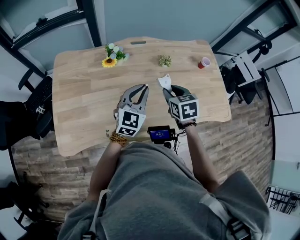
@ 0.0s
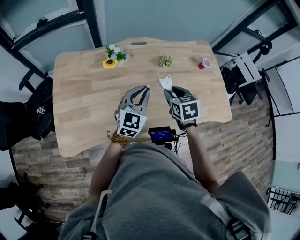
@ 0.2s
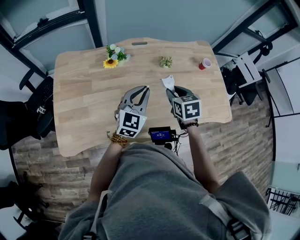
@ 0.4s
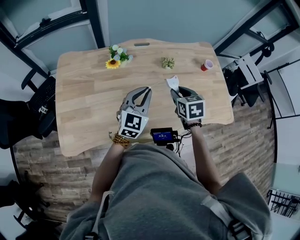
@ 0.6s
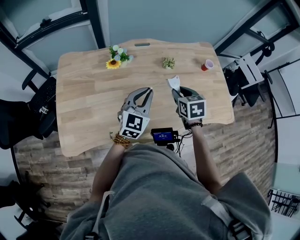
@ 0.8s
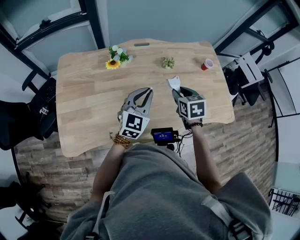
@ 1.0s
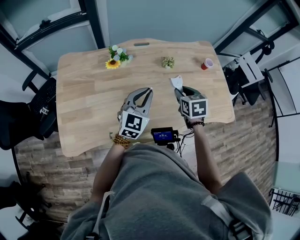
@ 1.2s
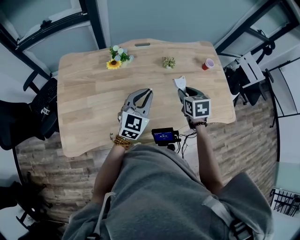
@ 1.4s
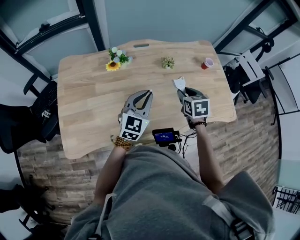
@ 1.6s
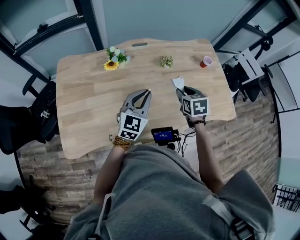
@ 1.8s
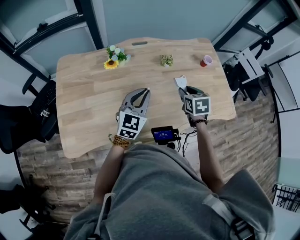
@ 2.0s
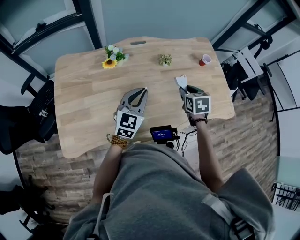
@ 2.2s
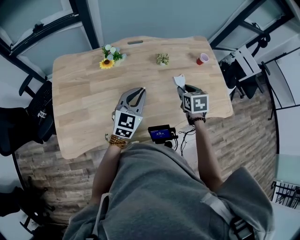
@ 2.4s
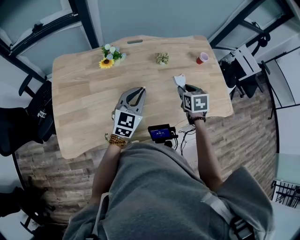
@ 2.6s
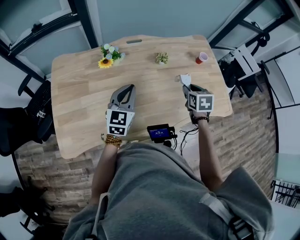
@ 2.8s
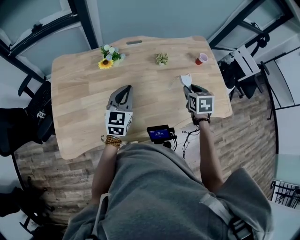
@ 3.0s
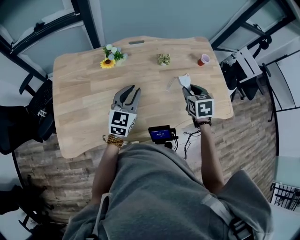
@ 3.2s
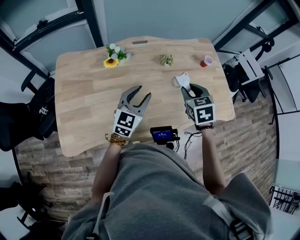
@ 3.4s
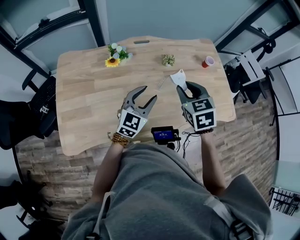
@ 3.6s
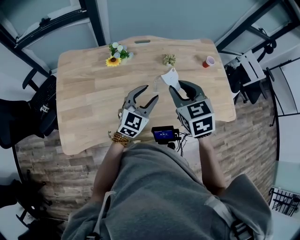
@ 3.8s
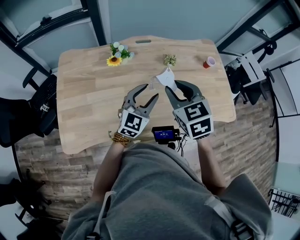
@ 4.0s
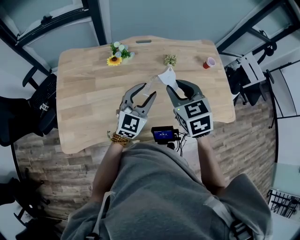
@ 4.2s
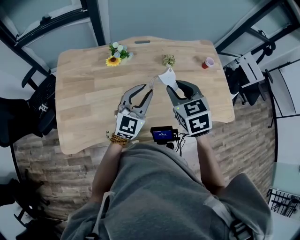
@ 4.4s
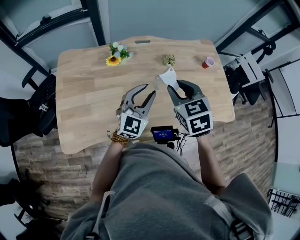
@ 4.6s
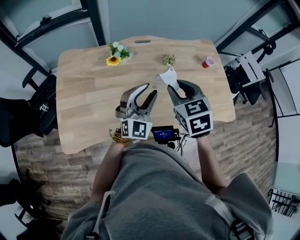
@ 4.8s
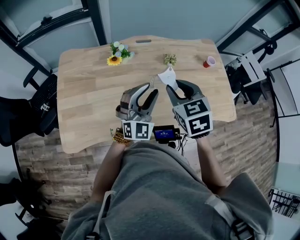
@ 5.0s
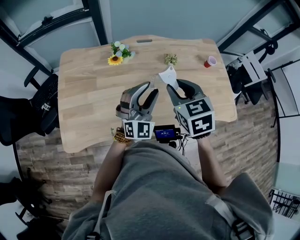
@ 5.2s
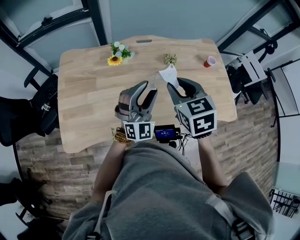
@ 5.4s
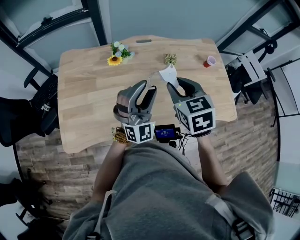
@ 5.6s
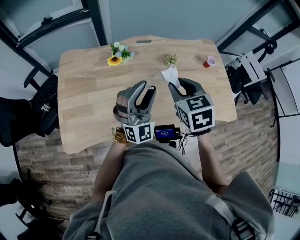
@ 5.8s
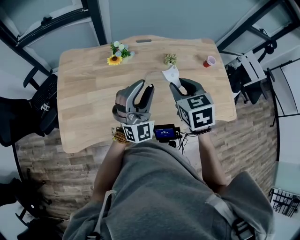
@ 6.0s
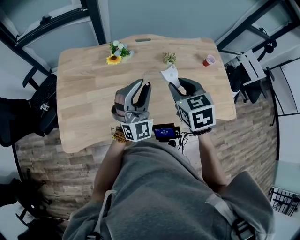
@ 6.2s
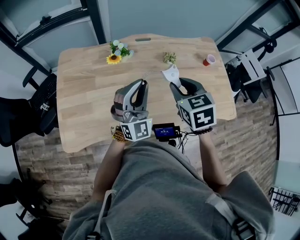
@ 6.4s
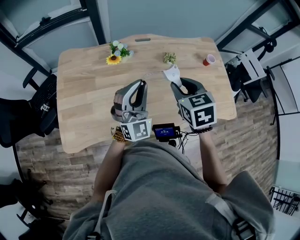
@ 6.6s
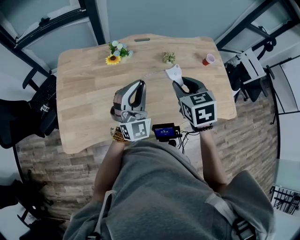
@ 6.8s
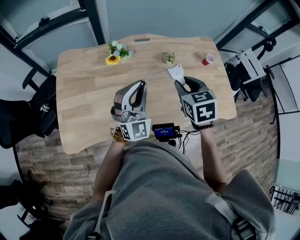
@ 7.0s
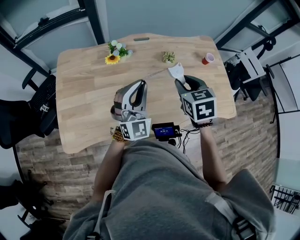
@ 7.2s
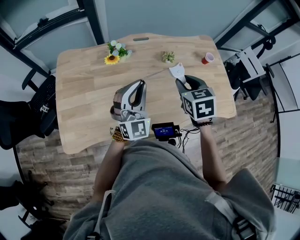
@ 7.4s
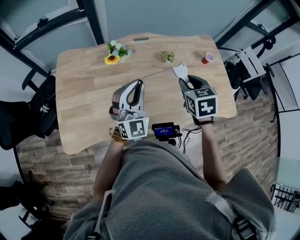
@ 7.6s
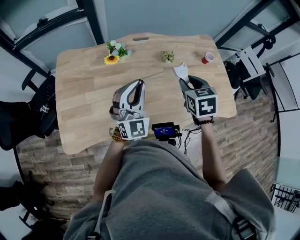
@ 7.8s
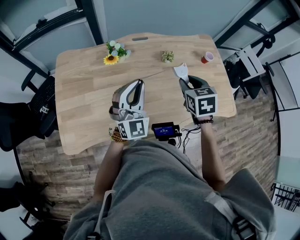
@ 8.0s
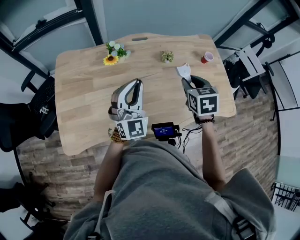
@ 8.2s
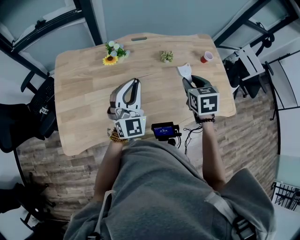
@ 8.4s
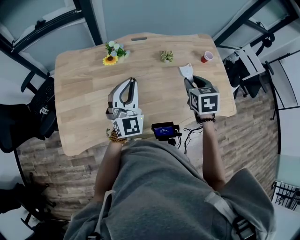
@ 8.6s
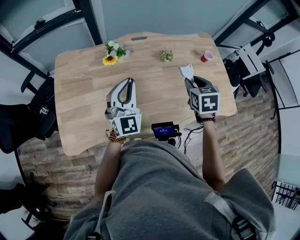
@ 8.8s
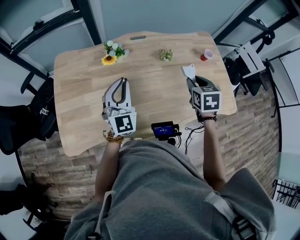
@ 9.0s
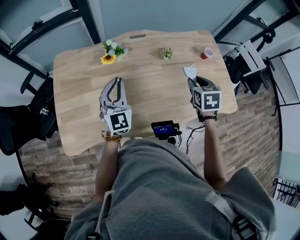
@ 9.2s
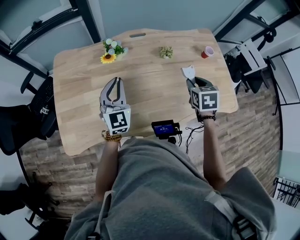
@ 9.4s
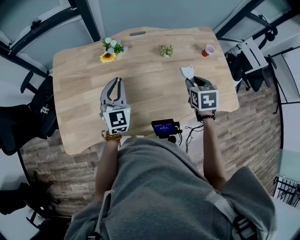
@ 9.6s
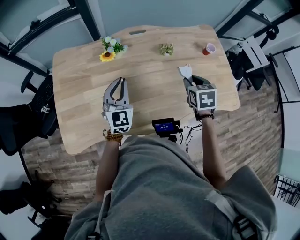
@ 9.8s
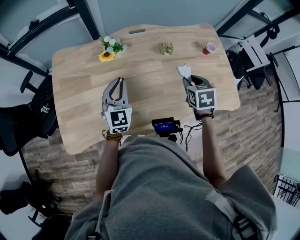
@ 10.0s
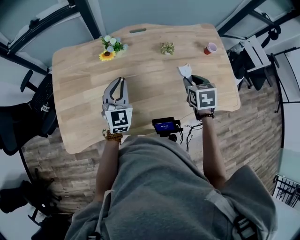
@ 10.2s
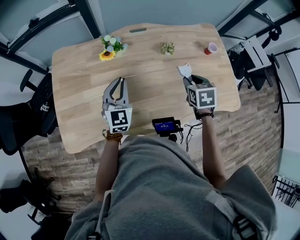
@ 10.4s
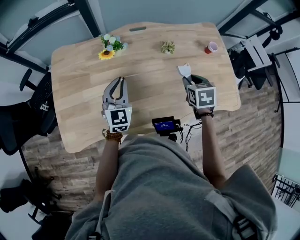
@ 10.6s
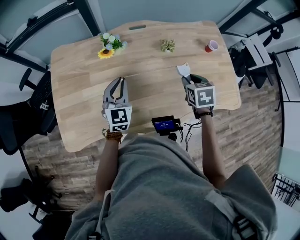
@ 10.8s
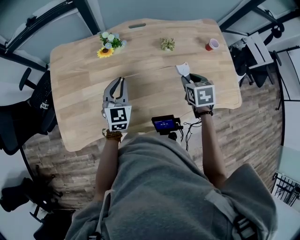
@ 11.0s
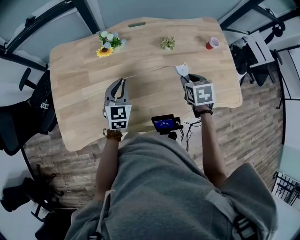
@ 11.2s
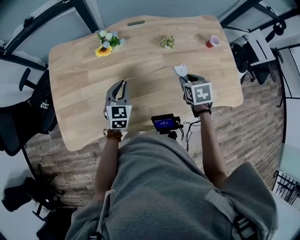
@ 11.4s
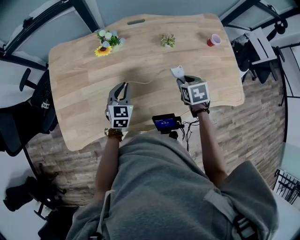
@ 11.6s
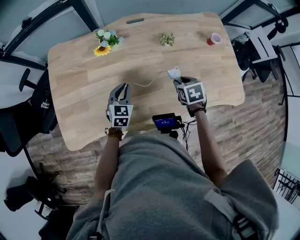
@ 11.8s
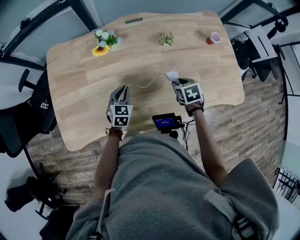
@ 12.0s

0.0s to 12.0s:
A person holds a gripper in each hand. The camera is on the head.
0.0s to 1.6s: The right gripper heads to the right, covering about 5 cm.
1.6s to 3.0s: The left gripper travels to the left by approximately 5 cm, while the right gripper shifts some 5 cm to the right.
3.0s to 4.4s: The right gripper shifts some 20 cm to the left and upward, and swivels approximately 30 degrees, while the left gripper moves some 5 cm, and opens up.
4.4s to 6.0s: The left gripper turns by roughly 40 degrees.
6.0s to 7.6s: The left gripper closes up. Meanwhile the right gripper is displaced to the right by some 5 cm.
7.6s to 9.0s: The right gripper goes some 5 cm to the right. The left gripper shifts approximately 5 cm to the left.
9.0s to 10.4s: Both grippers move downward, about 5 cm.
10.4s to 12.0s: The grippers both shift downward by some 15 cm. The left gripper changes its angle by approximately 30 degrees.

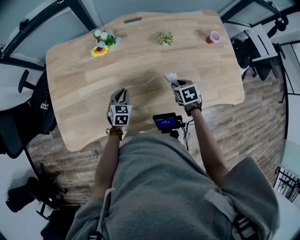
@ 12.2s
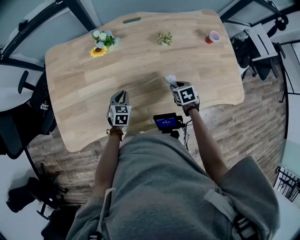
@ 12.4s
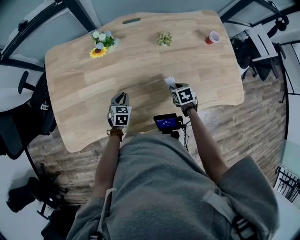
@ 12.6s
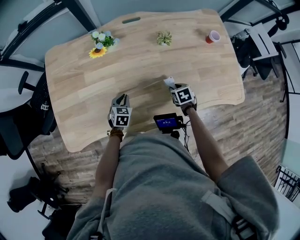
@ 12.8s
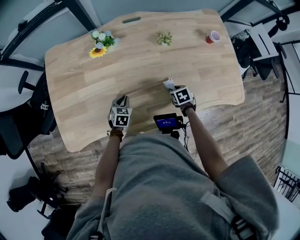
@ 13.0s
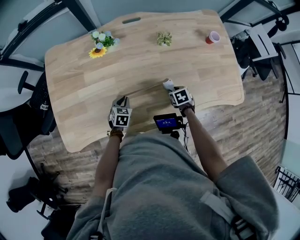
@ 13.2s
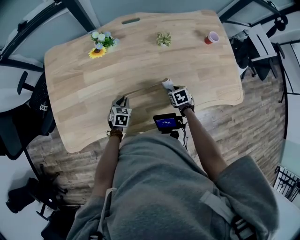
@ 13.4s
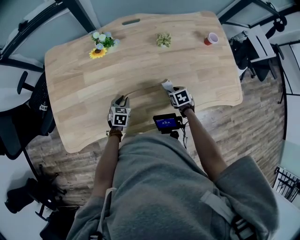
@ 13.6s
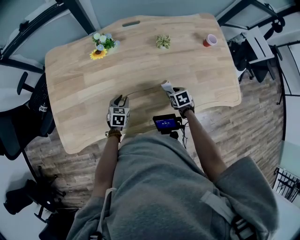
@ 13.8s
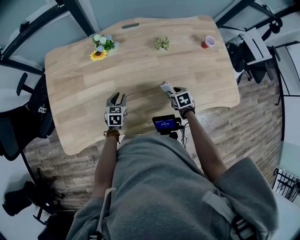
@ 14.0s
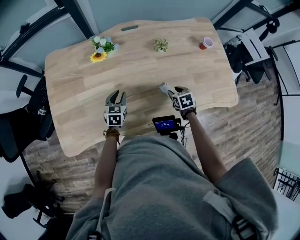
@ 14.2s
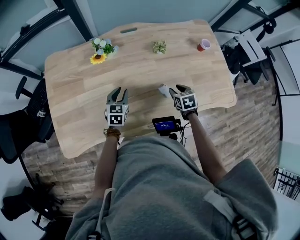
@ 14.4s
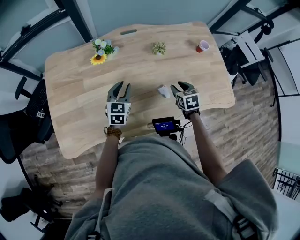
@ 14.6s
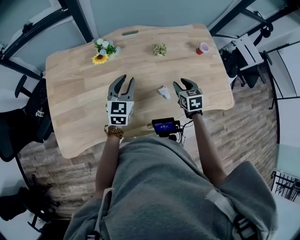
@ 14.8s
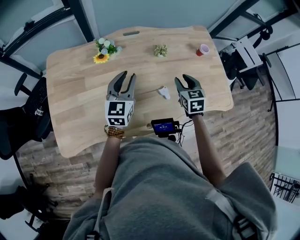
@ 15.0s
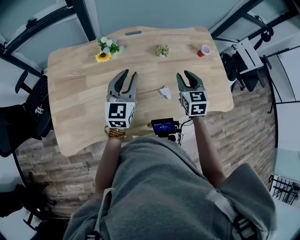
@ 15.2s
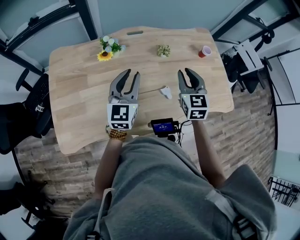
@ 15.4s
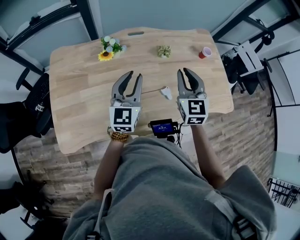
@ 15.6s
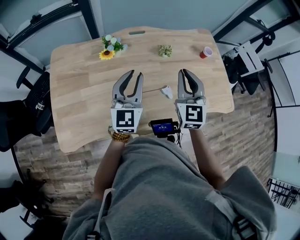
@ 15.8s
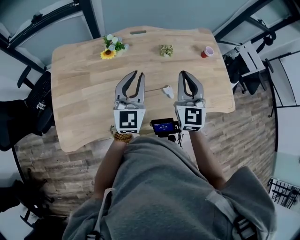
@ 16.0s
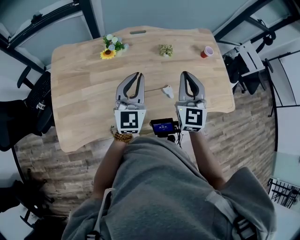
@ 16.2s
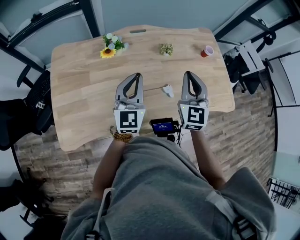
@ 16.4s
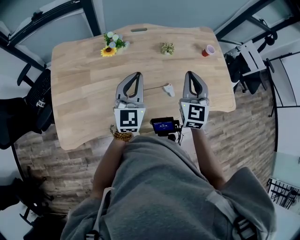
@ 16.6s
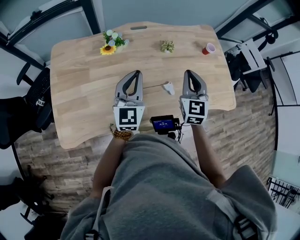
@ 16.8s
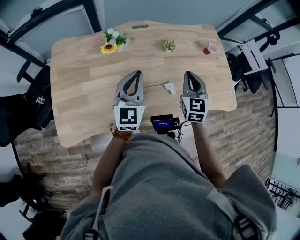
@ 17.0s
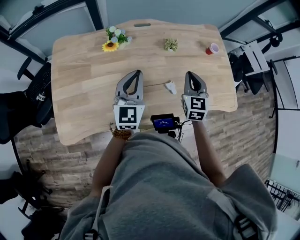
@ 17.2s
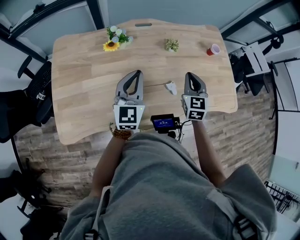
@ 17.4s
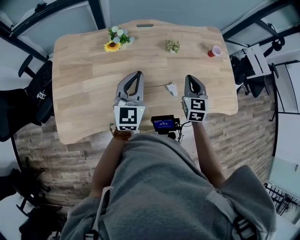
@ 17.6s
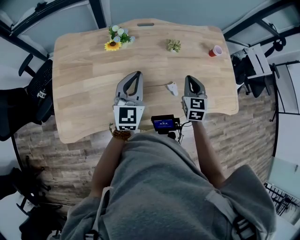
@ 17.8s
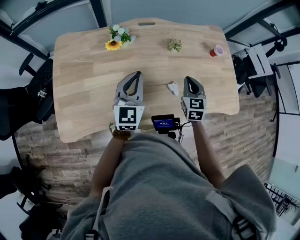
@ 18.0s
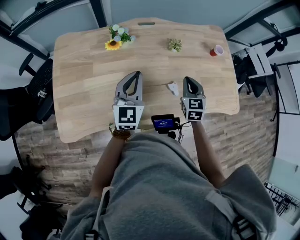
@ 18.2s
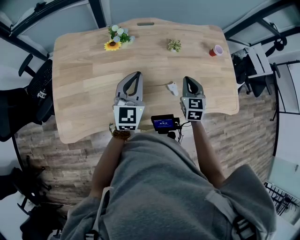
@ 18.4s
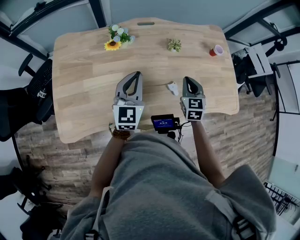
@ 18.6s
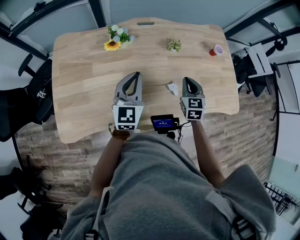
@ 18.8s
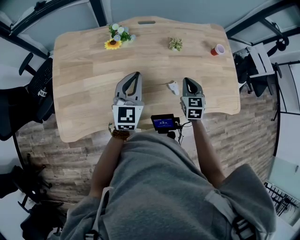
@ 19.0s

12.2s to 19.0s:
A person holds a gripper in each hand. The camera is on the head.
12.2s to 13.6s: The right gripper heads downward, covering roughly 10 cm, while the left gripper moves downward, roughly 5 cm.
13.6s to 15.0s: Both grippers move upward, approximately 25 cm. The left gripper angles its fingers upward, by approximately 40 degrees; the right gripper angles its fingers upward, by approximately 30 degrees.
15.0s to 16.2s: The right gripper goes some 15 cm upward and to the left, tips its fingers upward by some 30 degrees, and closes its fingers; the left gripper goes about 5 cm upward.
16.2s to 17.6s: The right gripper travels downward by some 15 cm.
17.6s to 19.0s: The right gripper is displaced downward by some 5 cm.

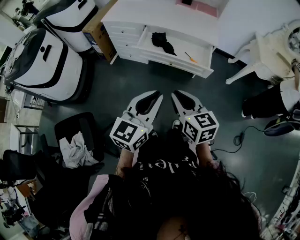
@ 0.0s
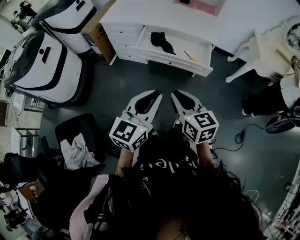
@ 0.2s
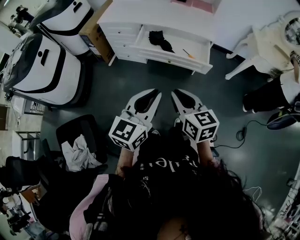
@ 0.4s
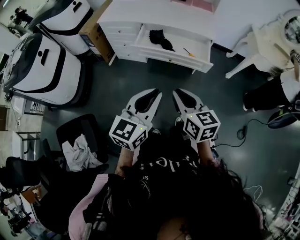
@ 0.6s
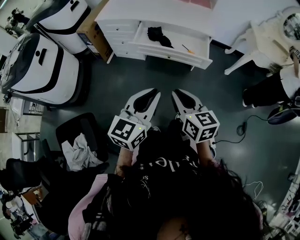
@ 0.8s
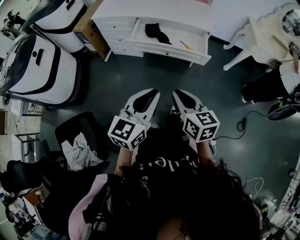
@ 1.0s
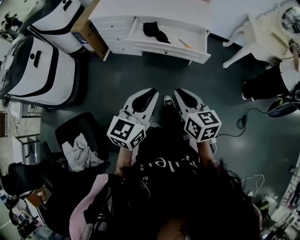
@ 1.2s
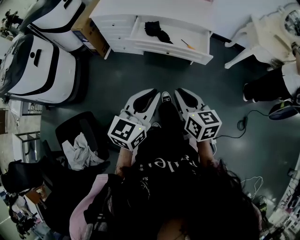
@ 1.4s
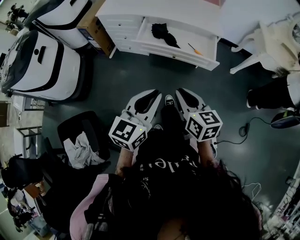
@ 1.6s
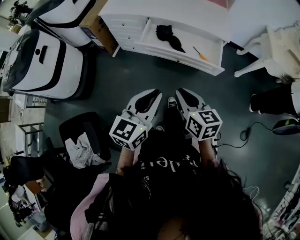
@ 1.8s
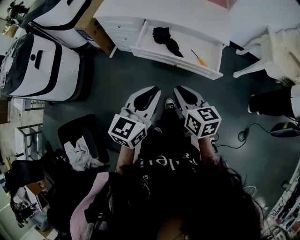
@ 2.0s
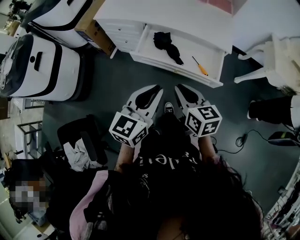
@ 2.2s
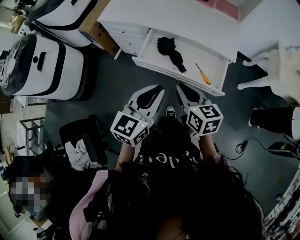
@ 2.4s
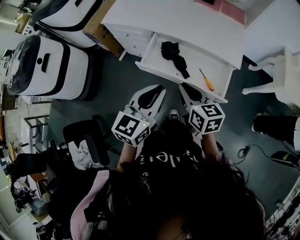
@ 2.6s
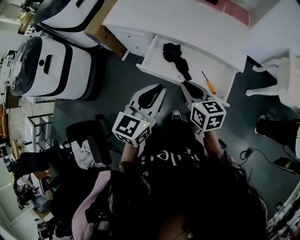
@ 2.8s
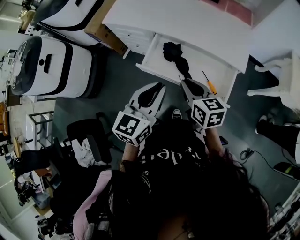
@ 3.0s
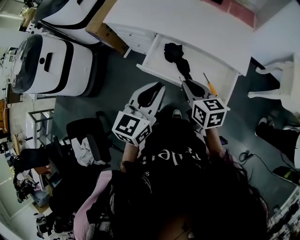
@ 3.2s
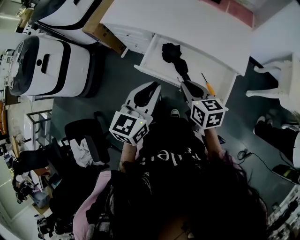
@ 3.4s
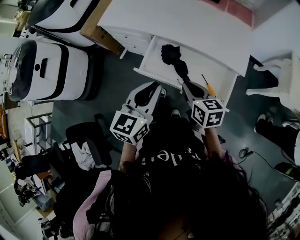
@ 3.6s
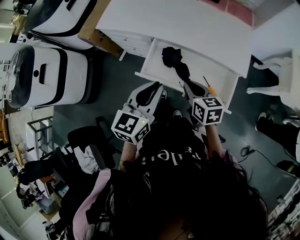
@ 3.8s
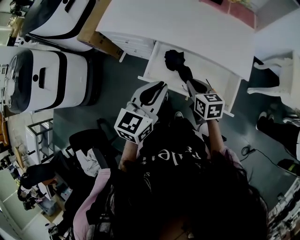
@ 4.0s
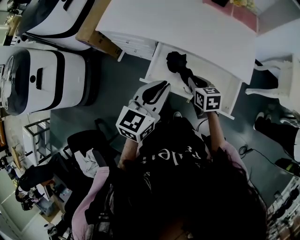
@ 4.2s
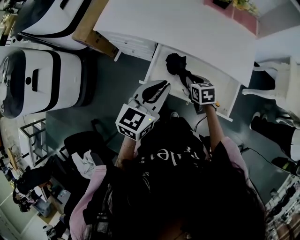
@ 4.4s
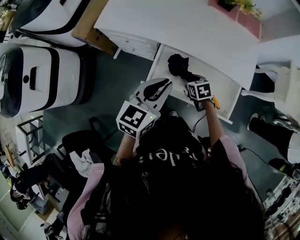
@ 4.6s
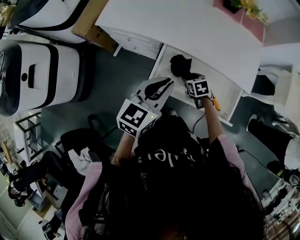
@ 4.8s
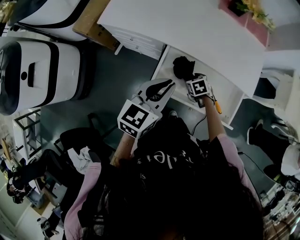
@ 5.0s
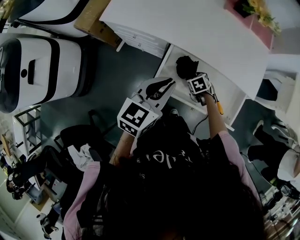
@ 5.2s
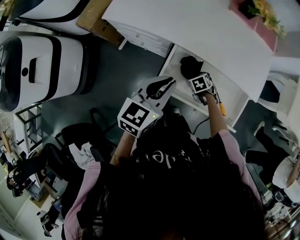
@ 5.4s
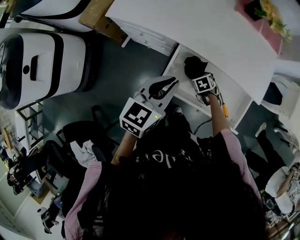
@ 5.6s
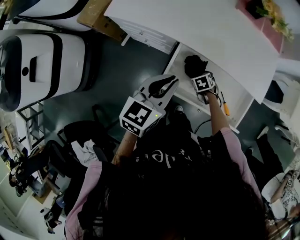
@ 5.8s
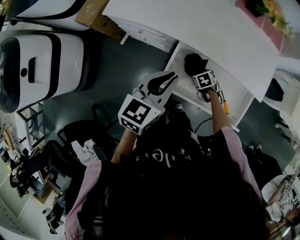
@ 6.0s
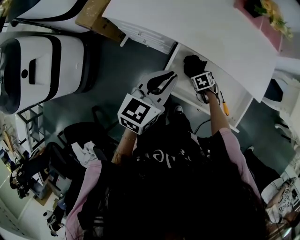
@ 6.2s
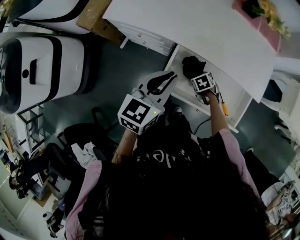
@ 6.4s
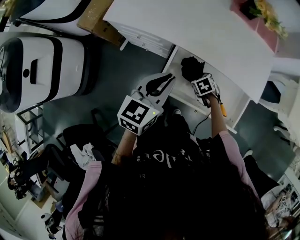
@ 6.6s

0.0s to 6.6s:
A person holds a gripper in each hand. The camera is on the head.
0.0s to 1.6s: The grippers make only small movements.
1.6s to 3.2s: The grippers both shift forward by roughly 25 cm.
3.2s to 5.0s: The right gripper goes about 30 cm downward and forward, tilts its fingers approximately 40 degrees downward, and opens its fingers; the left gripper heads forward, covering roughly 15 cm.
5.0s to 6.6s: There are only small adjustments of the grippers.
